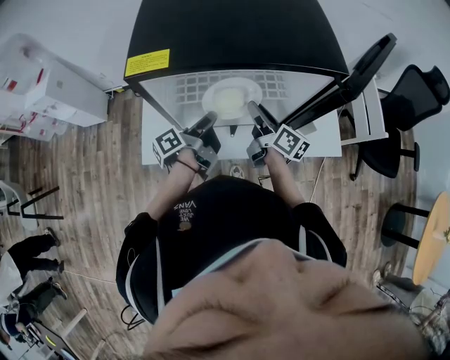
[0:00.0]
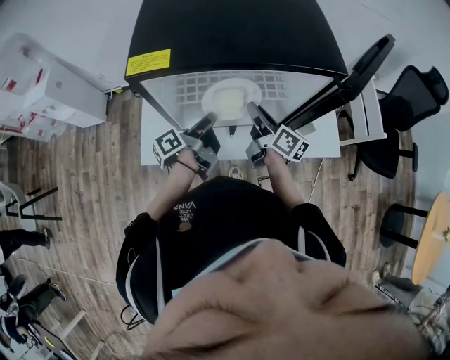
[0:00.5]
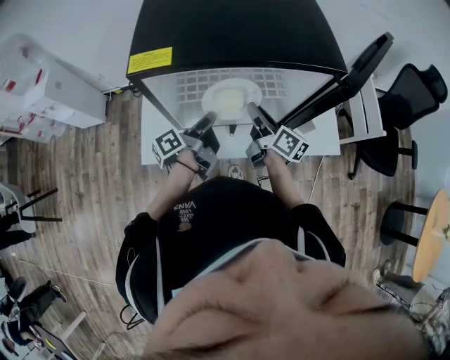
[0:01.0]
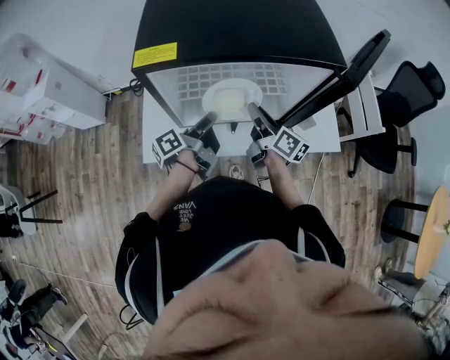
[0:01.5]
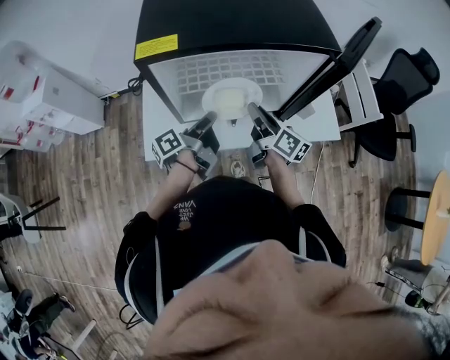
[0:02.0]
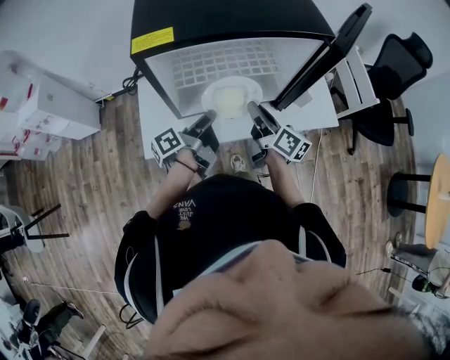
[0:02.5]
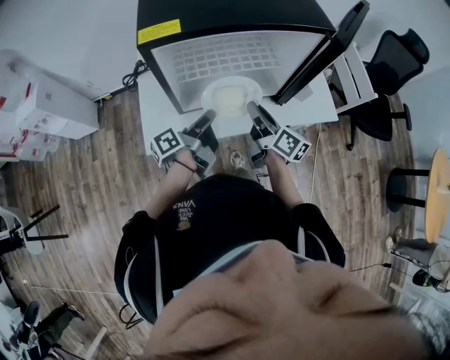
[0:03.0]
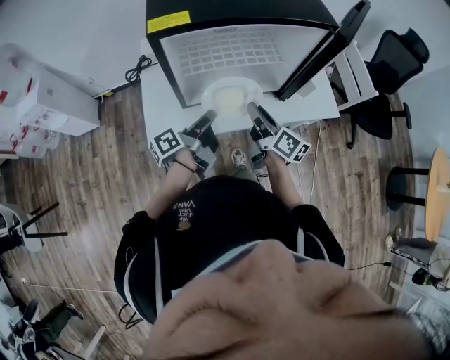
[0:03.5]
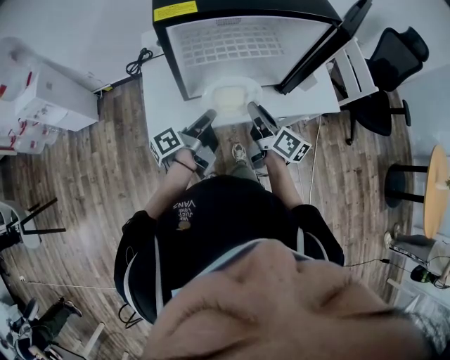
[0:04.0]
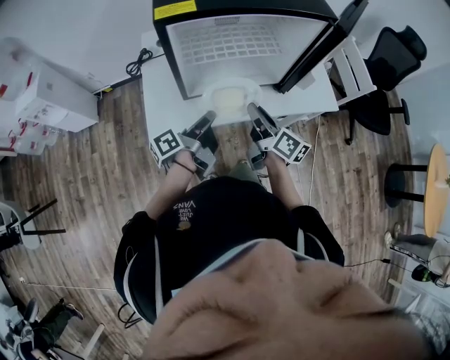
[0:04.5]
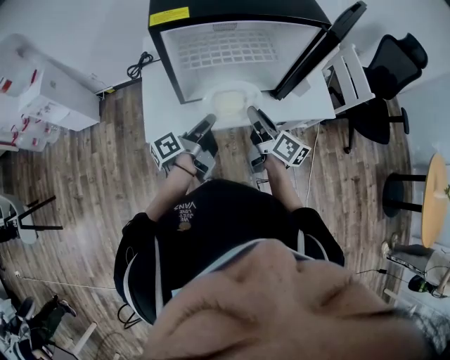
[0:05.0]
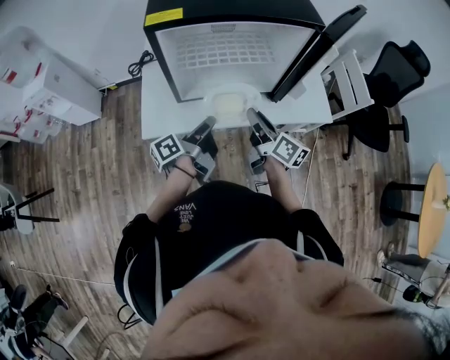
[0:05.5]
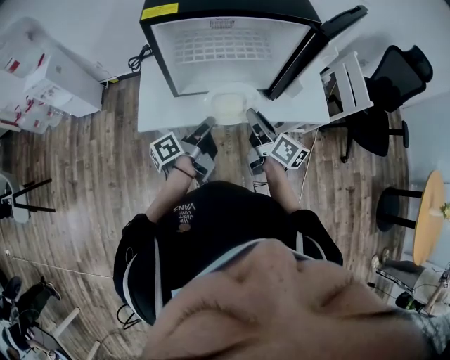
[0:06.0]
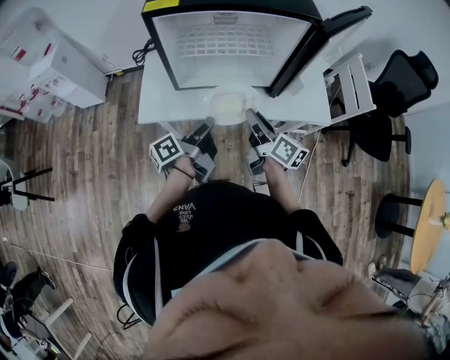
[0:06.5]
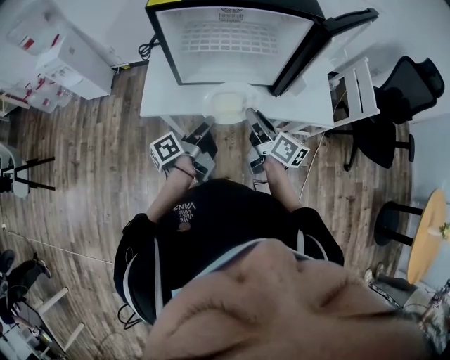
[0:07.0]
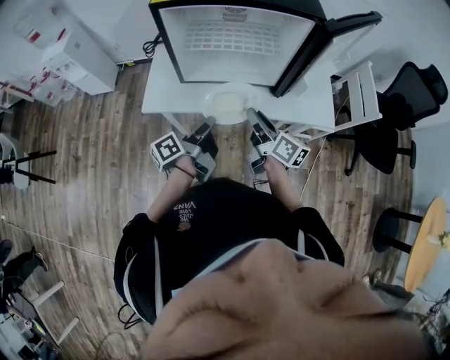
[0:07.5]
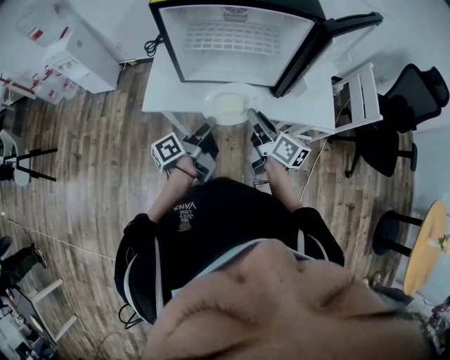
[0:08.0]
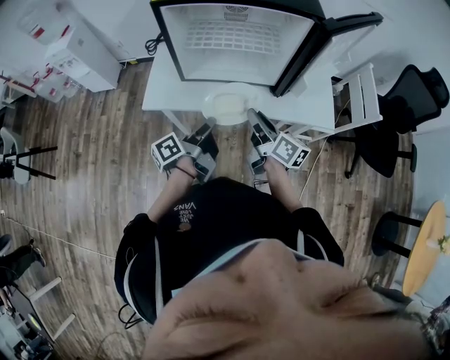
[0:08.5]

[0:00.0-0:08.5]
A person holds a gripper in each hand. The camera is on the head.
0:00.0 to 0:02.0: The right gripper goes approximately 5 cm backward.
0:02.0 to 0:04.0: Both grippers move backward, approximately 10 cm.
0:04.0 to 0:06.5: The left gripper moves to the right and backward, approximately 10 cm; the right gripper is displaced to the right by roughly 5 cm.
0:06.5 to 0:08.5: The grippers move only a little.

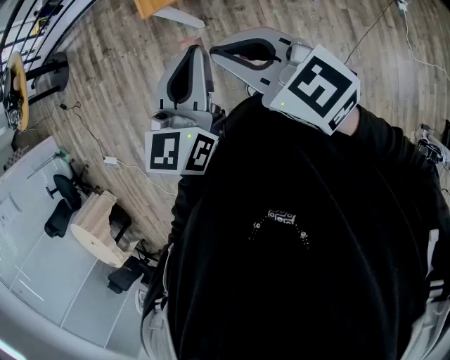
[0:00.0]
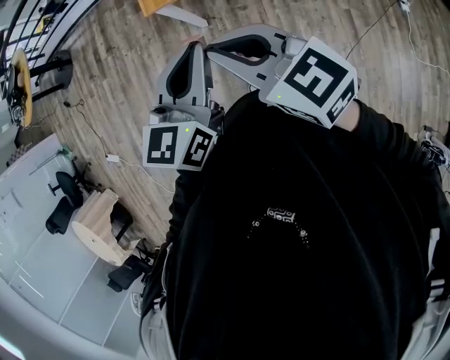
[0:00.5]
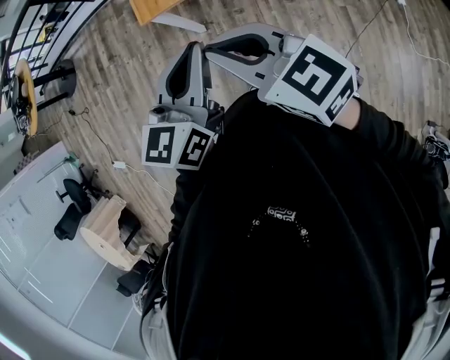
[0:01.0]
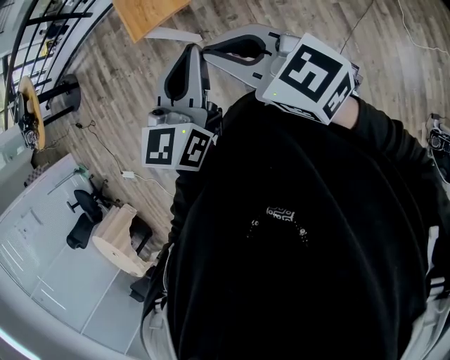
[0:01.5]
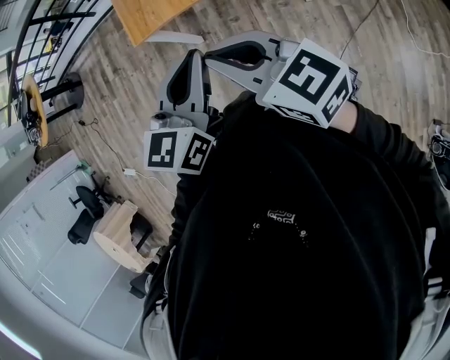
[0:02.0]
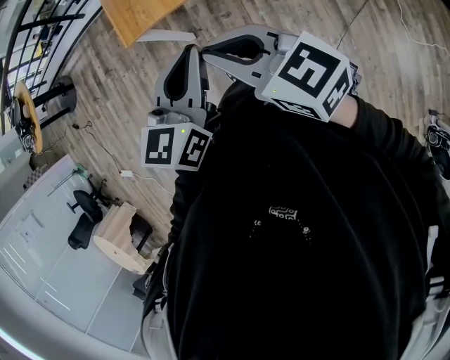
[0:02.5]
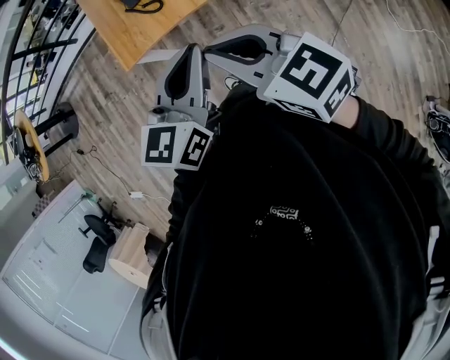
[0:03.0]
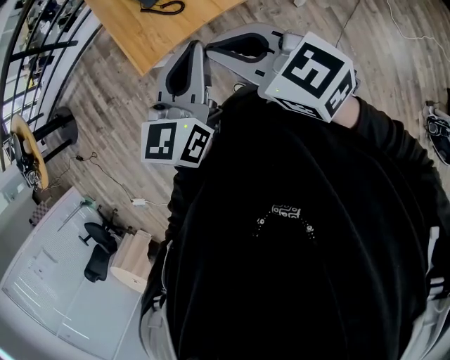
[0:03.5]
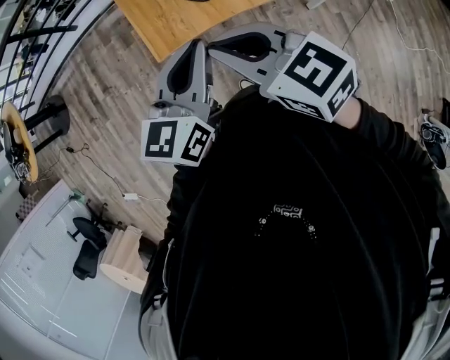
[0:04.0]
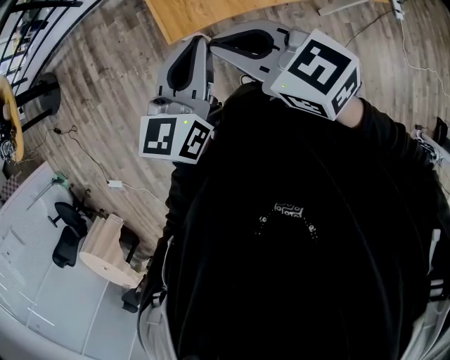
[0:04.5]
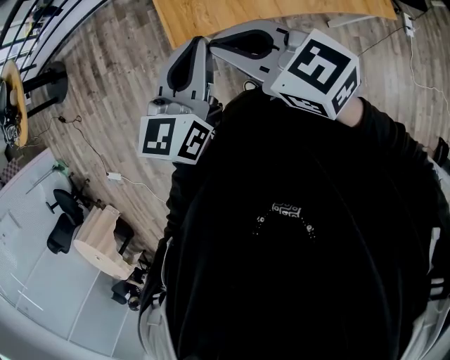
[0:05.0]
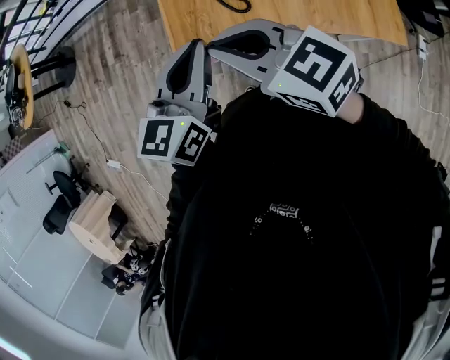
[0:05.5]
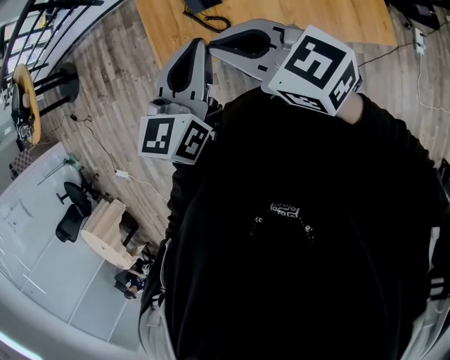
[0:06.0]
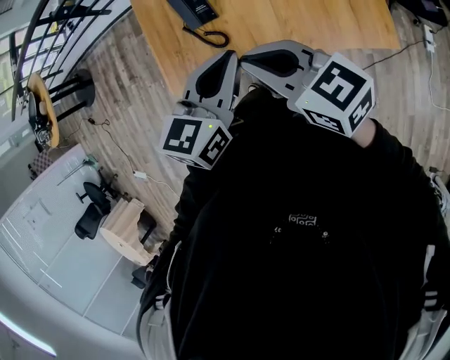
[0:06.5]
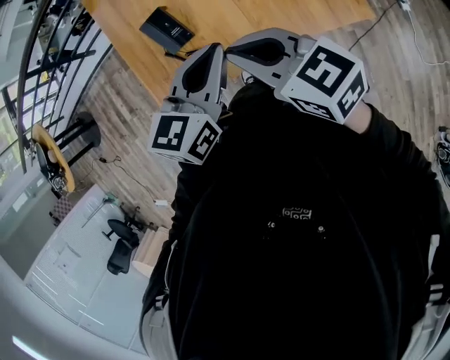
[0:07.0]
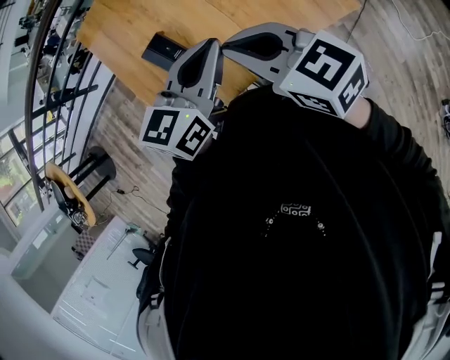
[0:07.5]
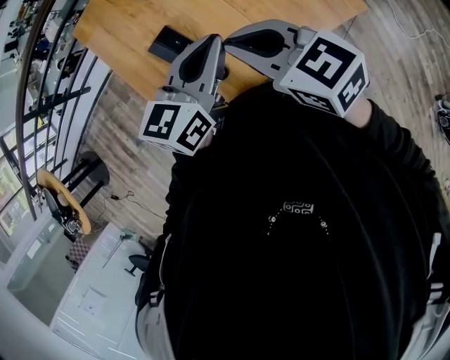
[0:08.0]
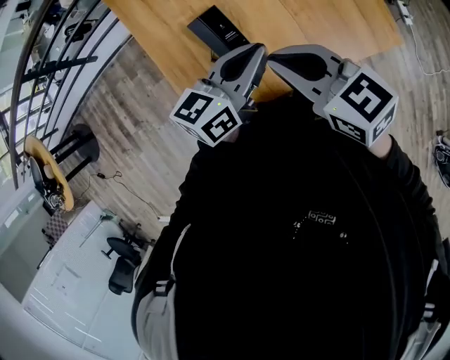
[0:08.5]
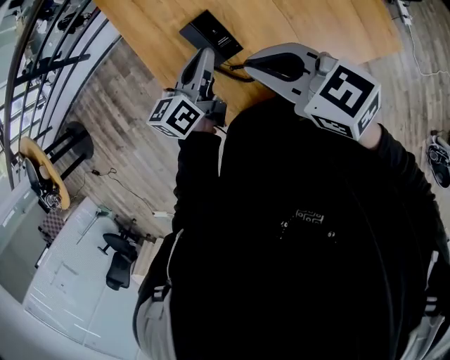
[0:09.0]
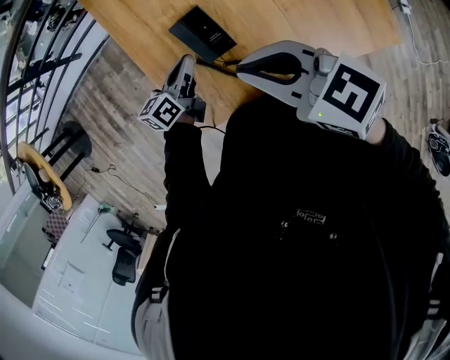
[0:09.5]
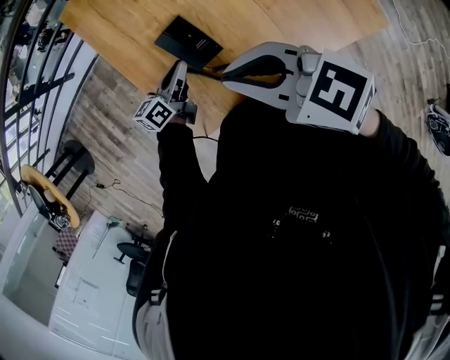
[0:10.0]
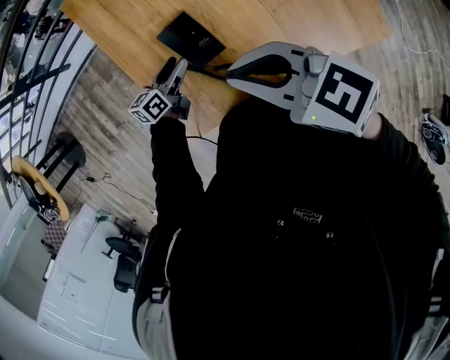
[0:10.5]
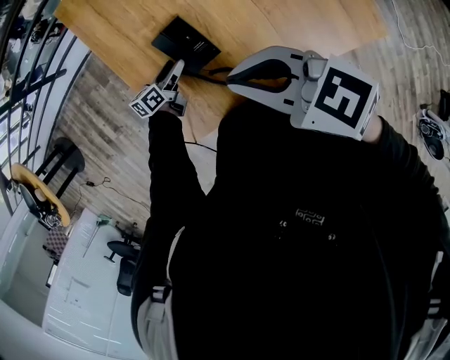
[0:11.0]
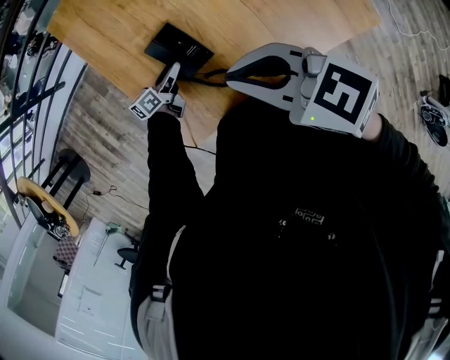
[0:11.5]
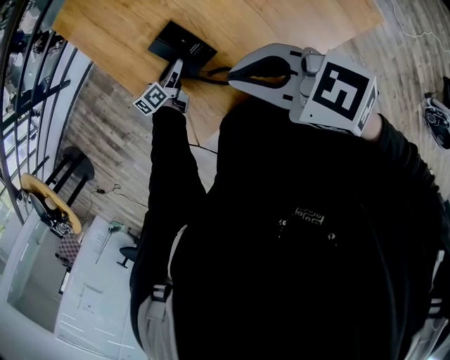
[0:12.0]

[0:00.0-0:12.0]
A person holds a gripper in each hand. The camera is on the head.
0:00.0 to 0:02.0: The two grippers go approximately 10 cm to the right.
0:02.0 to 0:04.0: The two grippers go approximately 25 cm forward and to the left.
0:04.0 to 0:06.0: Both grippers travel together forward and to the right, roughly 20 cm.
0:06.0 to 0:08.0: The left gripper ends up roughly 15 cm from where it was, and changes its angle by roughly 40 degrees, while the right gripper ends up some 15 cm from where it was, and rotates about 30 degrees.
0:08.0 to 0:10.0: The right gripper heads to the left, covering roughly 10 cm. Meanwhile the left gripper travels downward, to the left and forward by roughly 35 cm, and rotates about 30 degrees.
0:10.0 to 0:12.0: The left gripper shifts approximately 10 cm downward, and opens.

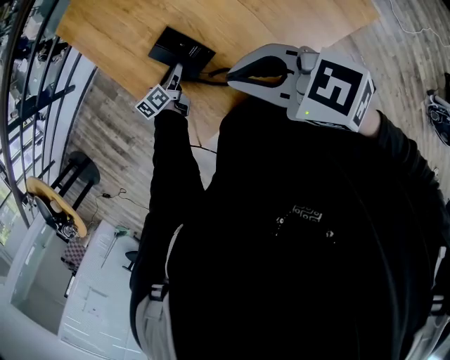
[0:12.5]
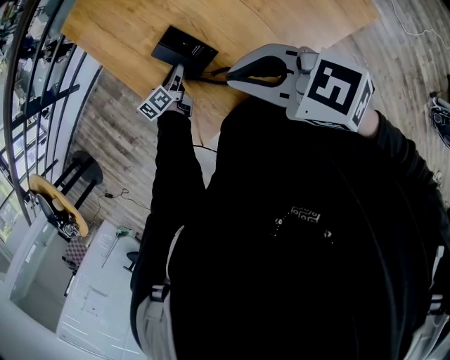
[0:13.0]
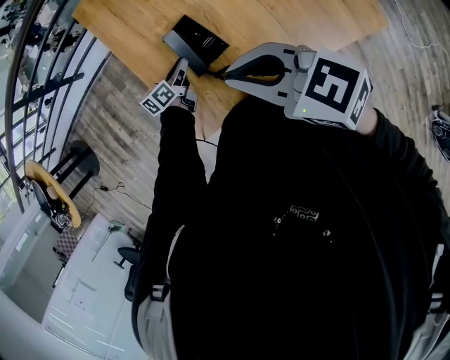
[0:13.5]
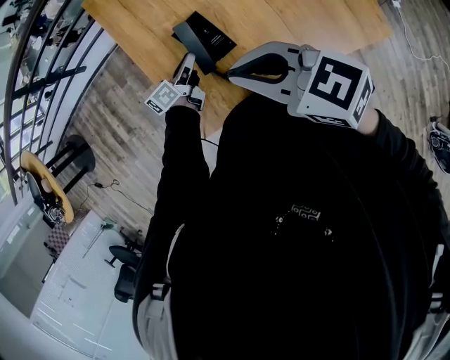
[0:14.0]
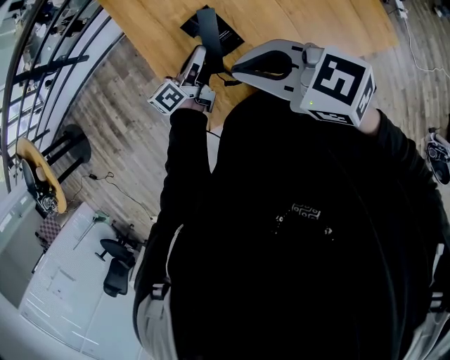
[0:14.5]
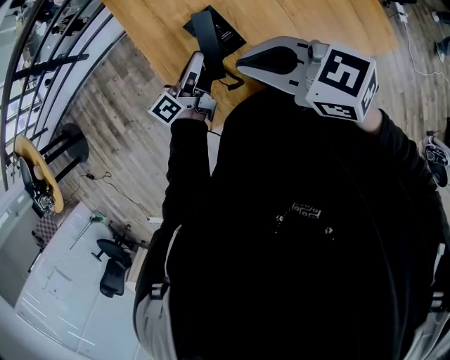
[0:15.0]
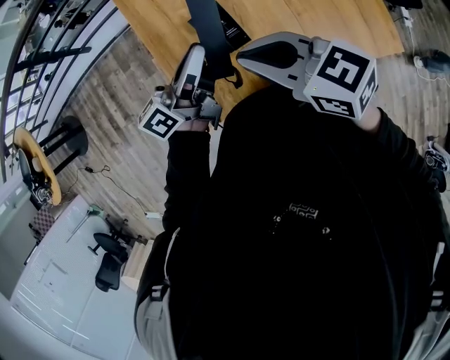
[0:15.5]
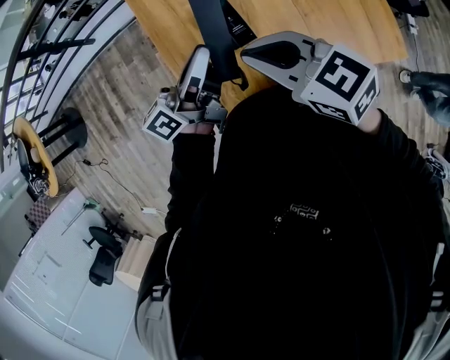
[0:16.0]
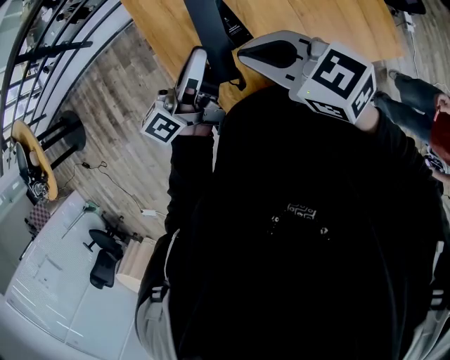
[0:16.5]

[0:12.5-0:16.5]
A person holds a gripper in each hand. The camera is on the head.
0:12.5 to 0:14.5: The right gripper is displaced to the left by about 5 cm, while the left gripper is displaced upward by about 15 cm, changes its angle by some 30 degrees, and closes its fingers.
0:14.5 to 0:16.5: The left gripper is displaced upward by approximately 15 cm.

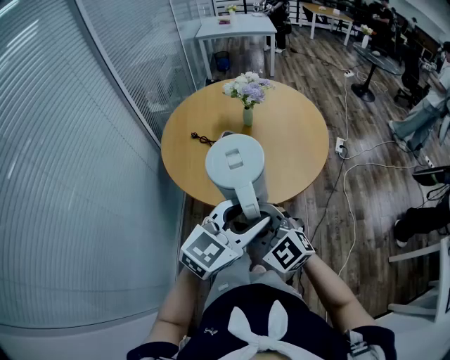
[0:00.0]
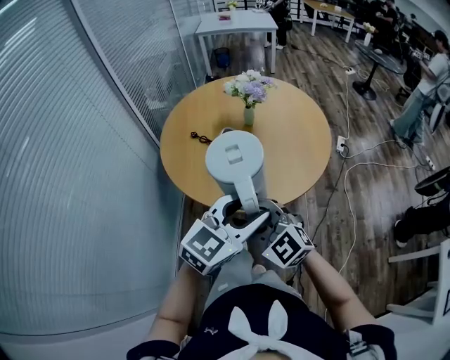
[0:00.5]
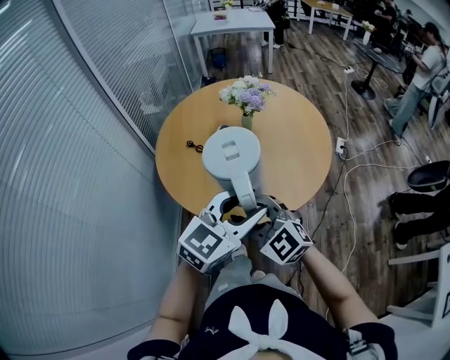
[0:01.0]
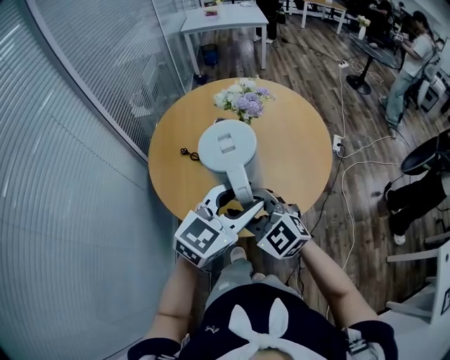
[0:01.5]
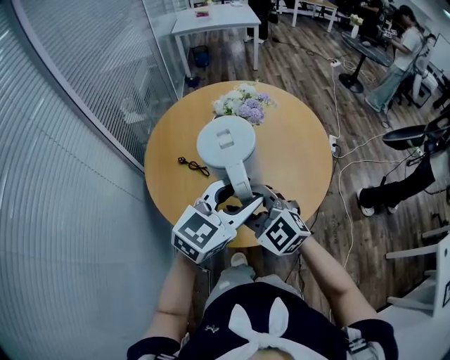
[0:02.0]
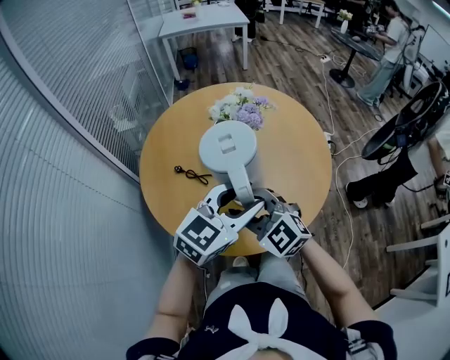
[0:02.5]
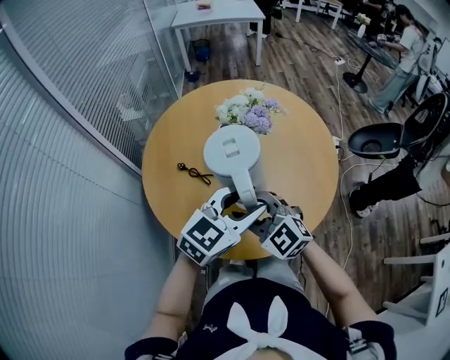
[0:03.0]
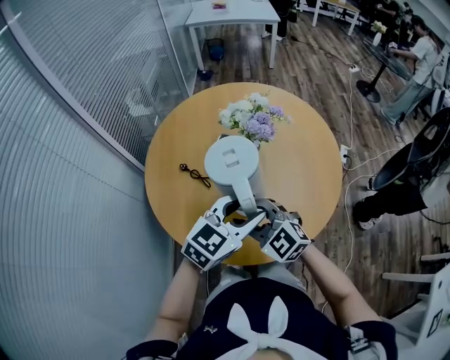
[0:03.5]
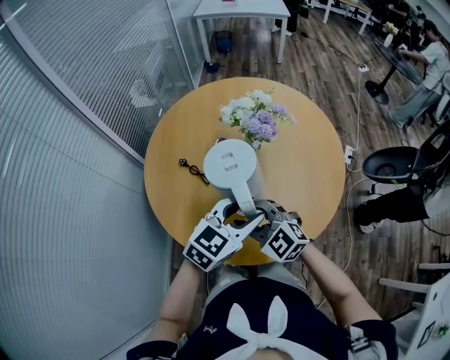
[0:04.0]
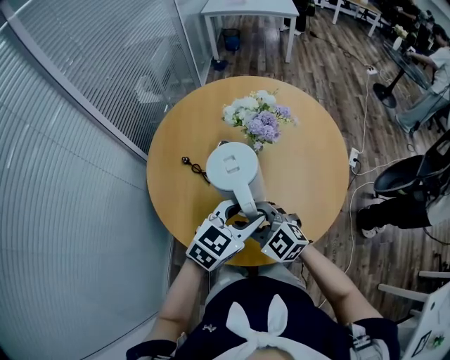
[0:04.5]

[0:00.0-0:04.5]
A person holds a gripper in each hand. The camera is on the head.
0:00.0 to 0:02.0: Both grippers move forward, approximately 25 cm.
0:02.0 to 0:04.5: Both grippers travel together downward and forward, about 10 cm.
